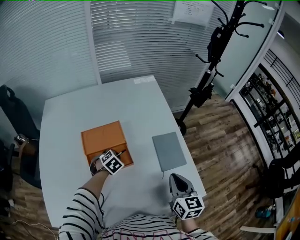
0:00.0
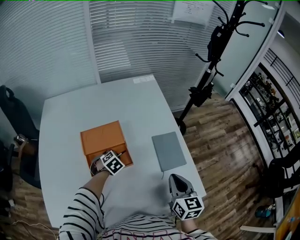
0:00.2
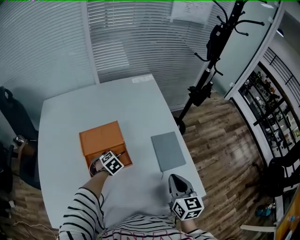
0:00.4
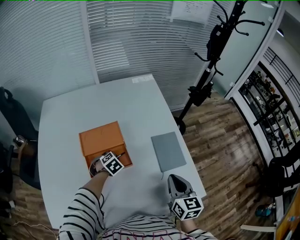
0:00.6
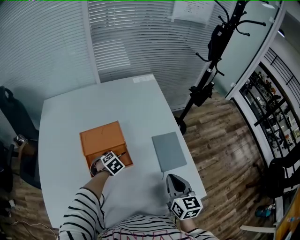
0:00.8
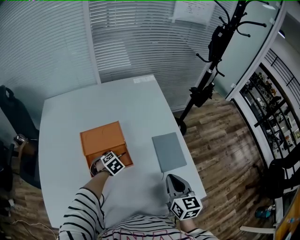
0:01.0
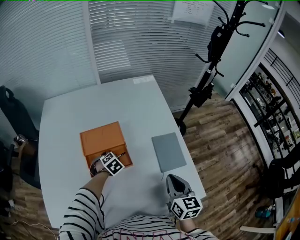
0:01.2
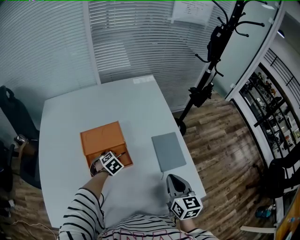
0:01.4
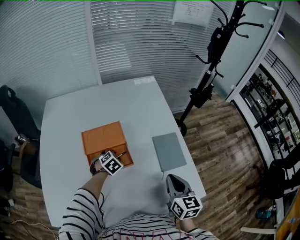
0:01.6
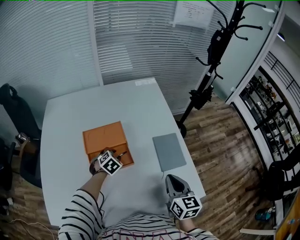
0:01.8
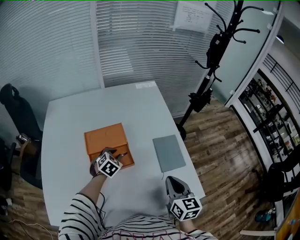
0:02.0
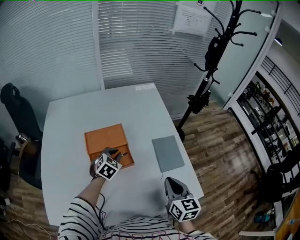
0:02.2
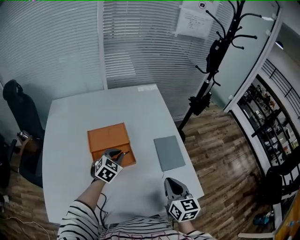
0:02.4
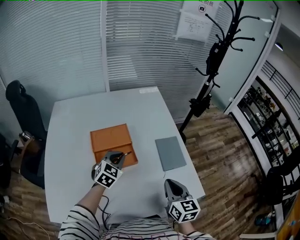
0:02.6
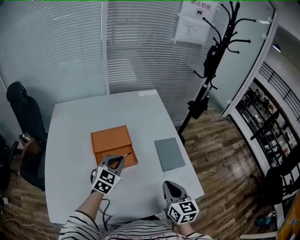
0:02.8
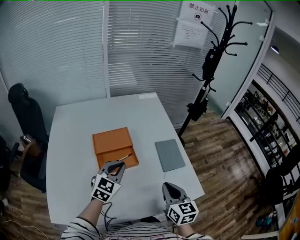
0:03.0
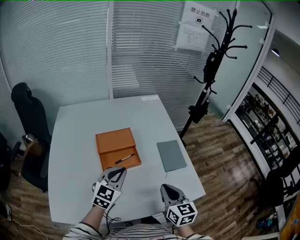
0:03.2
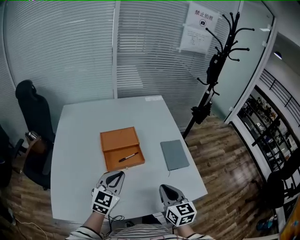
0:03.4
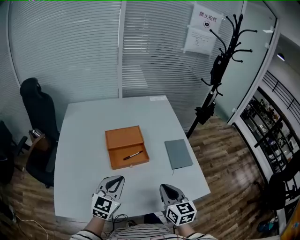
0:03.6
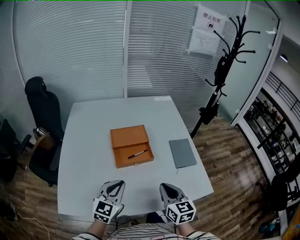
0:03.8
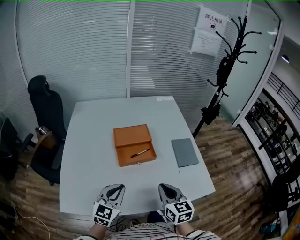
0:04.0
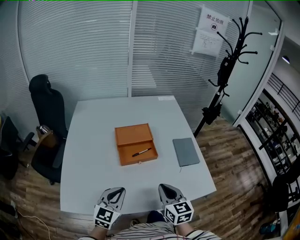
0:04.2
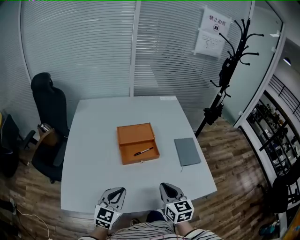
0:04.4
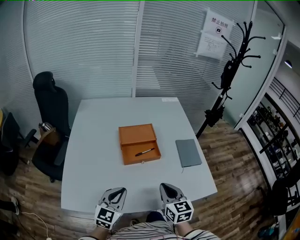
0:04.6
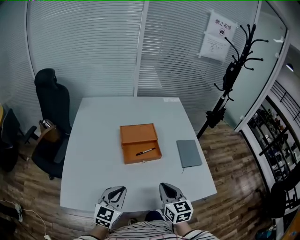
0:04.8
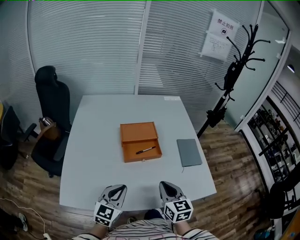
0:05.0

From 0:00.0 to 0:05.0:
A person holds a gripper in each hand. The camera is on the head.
From 0:00.0 to 0:01.6: There are only small adjustments of the grippers.
From 0:01.6 to 0:03.4: The right gripper shifts approximately 15 cm backward and to the left. Meanwhile the left gripper goes approximately 30 cm upward and backward, tilts its fingers approximately 50 degrees upward, and closes.
From 0:03.4 to 0:05.0: The left gripper is displaced backward and to the left by about 15 cm, while the right gripper shifts about 10 cm to the left.

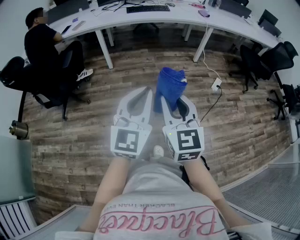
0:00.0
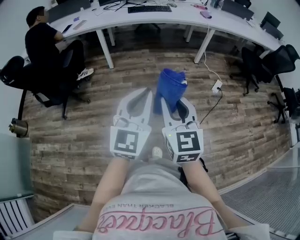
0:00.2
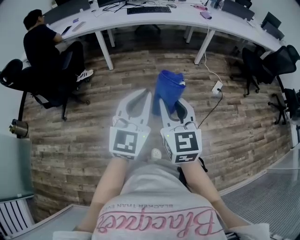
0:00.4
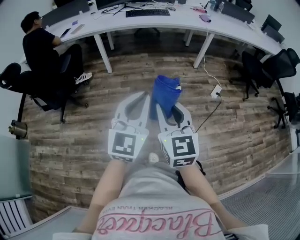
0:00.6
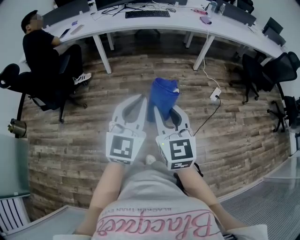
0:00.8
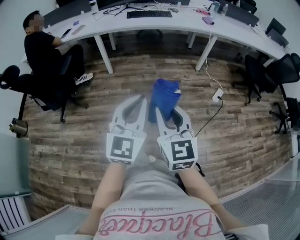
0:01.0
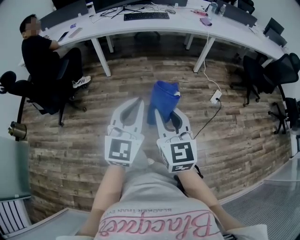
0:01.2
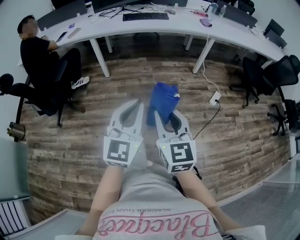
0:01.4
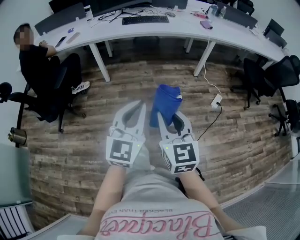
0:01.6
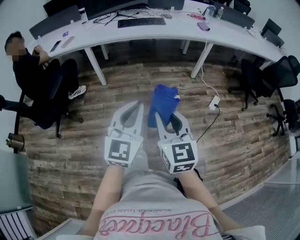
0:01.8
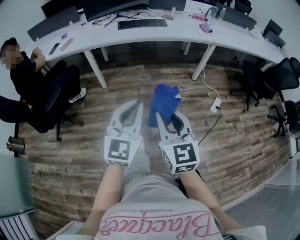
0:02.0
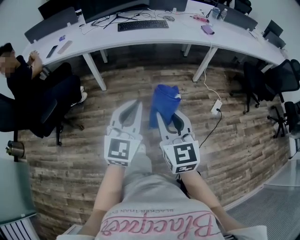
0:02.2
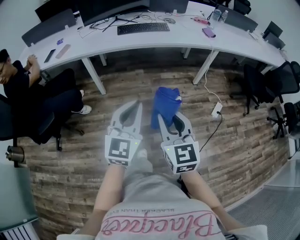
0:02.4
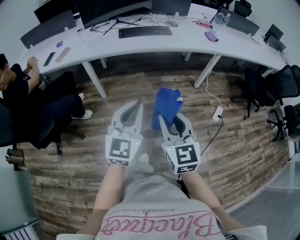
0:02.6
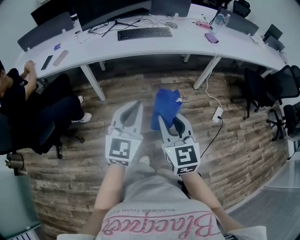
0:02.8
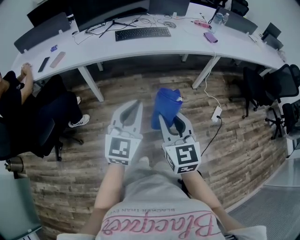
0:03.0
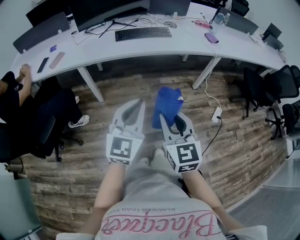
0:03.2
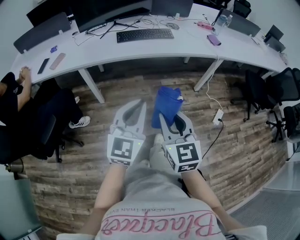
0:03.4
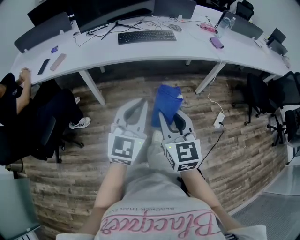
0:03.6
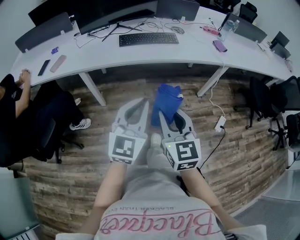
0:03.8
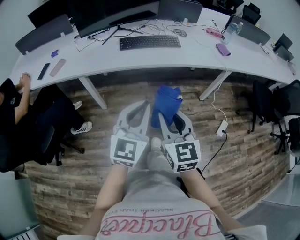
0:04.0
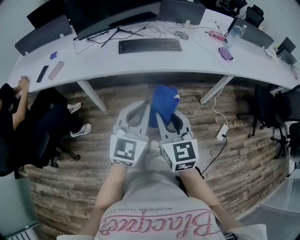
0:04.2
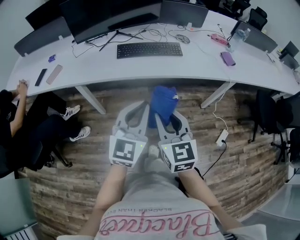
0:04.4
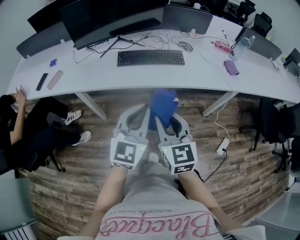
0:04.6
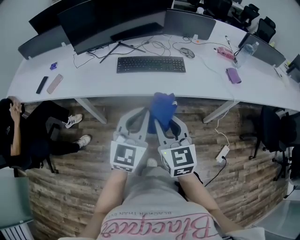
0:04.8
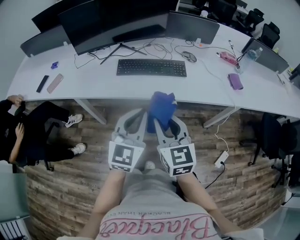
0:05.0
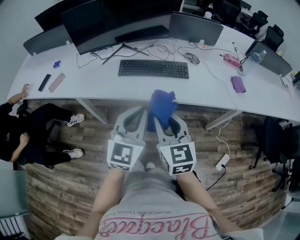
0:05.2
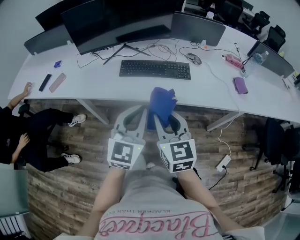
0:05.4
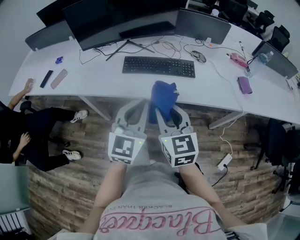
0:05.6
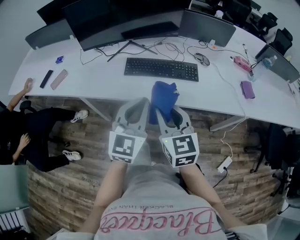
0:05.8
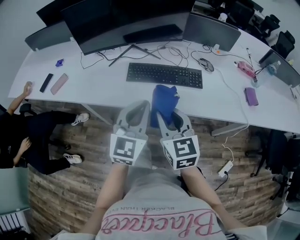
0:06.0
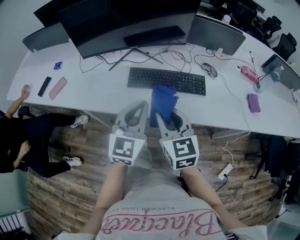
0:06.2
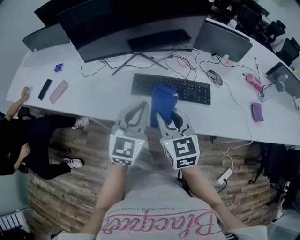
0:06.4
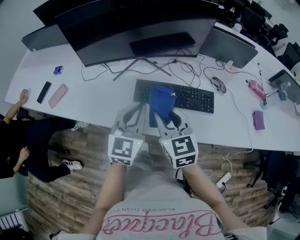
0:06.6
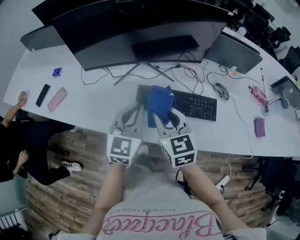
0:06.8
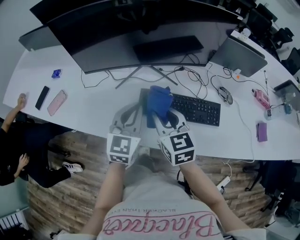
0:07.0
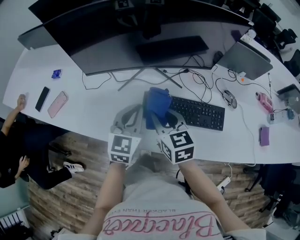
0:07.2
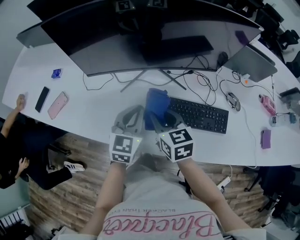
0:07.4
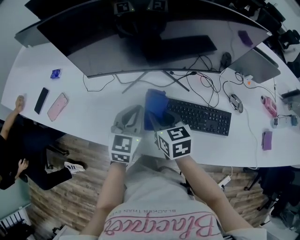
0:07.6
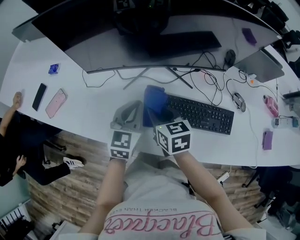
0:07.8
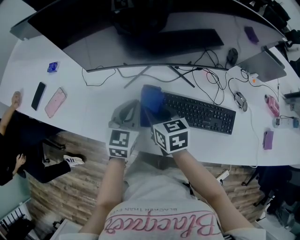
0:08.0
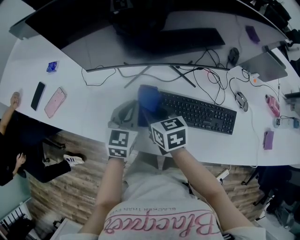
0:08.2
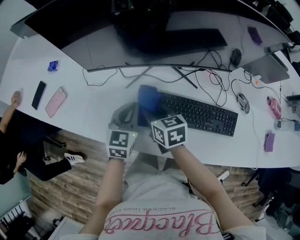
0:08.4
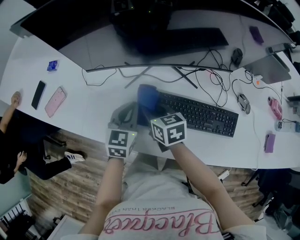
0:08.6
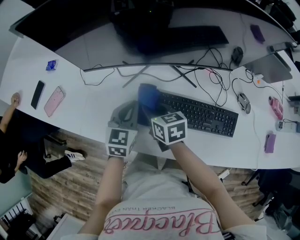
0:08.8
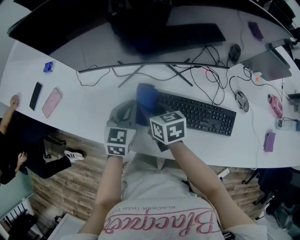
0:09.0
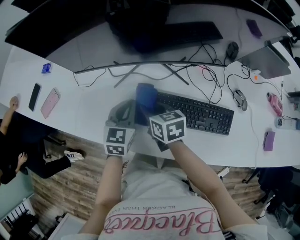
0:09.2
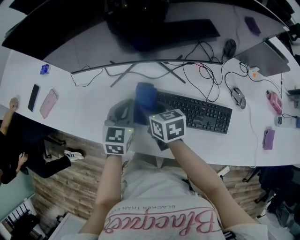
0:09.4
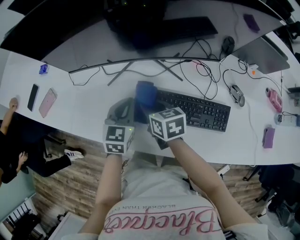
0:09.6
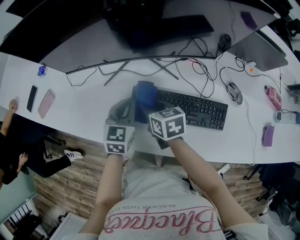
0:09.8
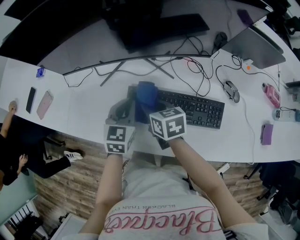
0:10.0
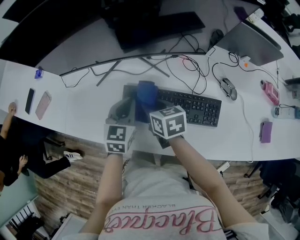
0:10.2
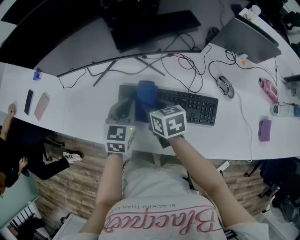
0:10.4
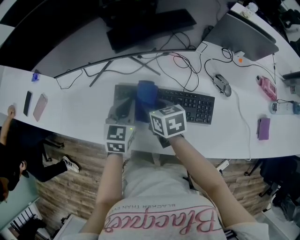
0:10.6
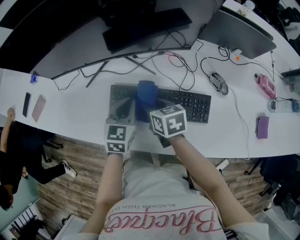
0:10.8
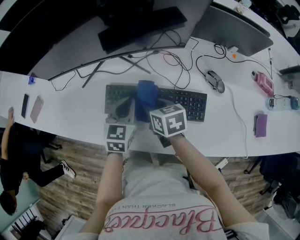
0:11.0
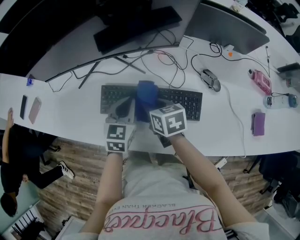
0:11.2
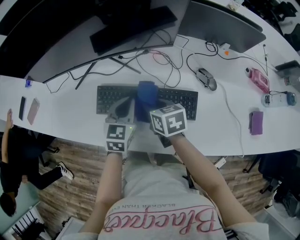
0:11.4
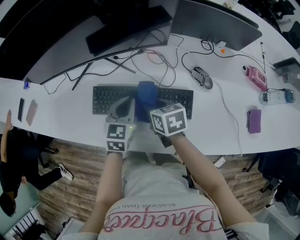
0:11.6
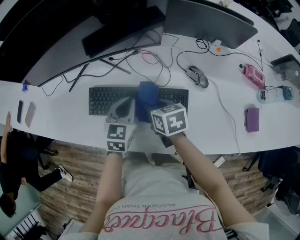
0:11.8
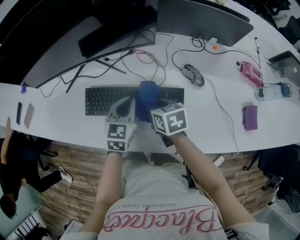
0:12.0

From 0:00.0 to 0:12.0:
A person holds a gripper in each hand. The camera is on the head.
From 0:00.0 to 0:01.6: The left gripper travels forward by about 15 cm. Meanwhile the right gripper is displaced forward and to the right by roughly 15 cm.
From 0:01.6 to 0:03.0: The grippers both shift forward by roughly 30 cm.
From 0:03.0 to 0:04.4: The two grippers go about 25 cm forward.
From 0:04.4 to 0:06.0: Both grippers travel together forward, roughly 25 cm.
From 0:06.0 to 0:07.6: Both grippers travel together forward and to the left, about 35 cm. The right gripper changes its angle by approximately 30 degrees.
From 0:07.6 to 0:09.0: The grippers both shift downward by about 5 cm.
From 0:09.0 to 0:10.4: The grippers both shift to the right by approximately 10 cm.
From 0:10.4 to 0:12.0: Both grippers travel together to the right, approximately 15 cm.

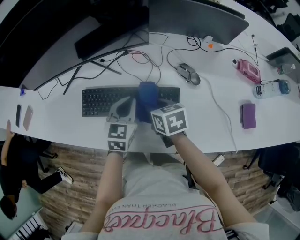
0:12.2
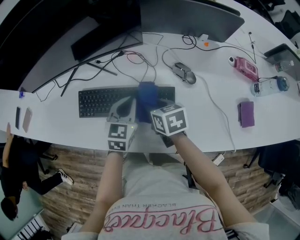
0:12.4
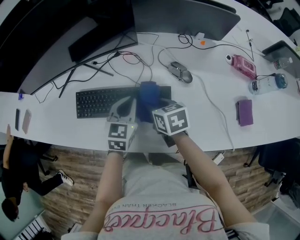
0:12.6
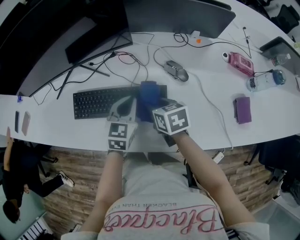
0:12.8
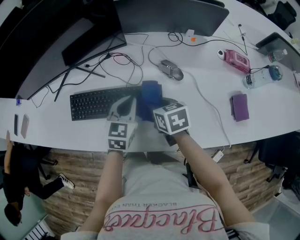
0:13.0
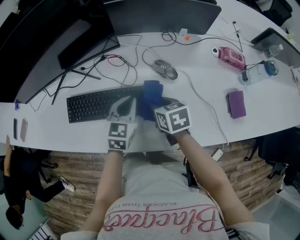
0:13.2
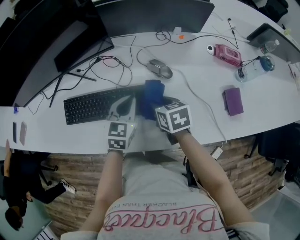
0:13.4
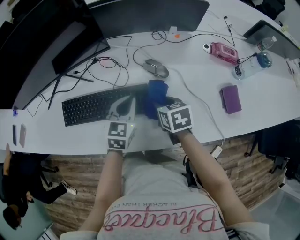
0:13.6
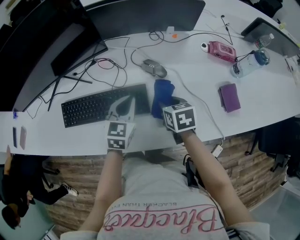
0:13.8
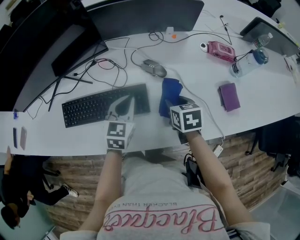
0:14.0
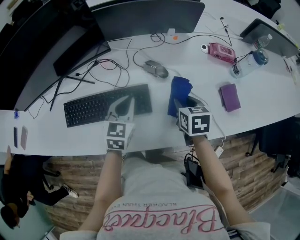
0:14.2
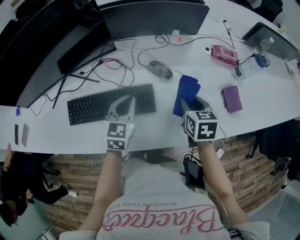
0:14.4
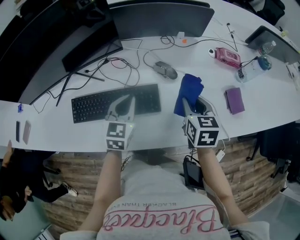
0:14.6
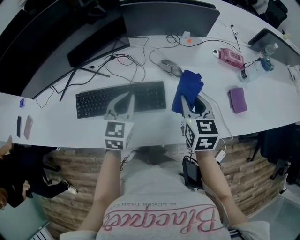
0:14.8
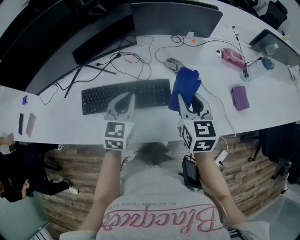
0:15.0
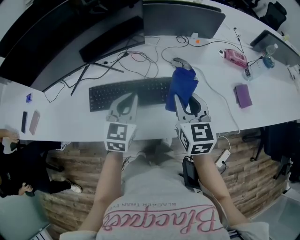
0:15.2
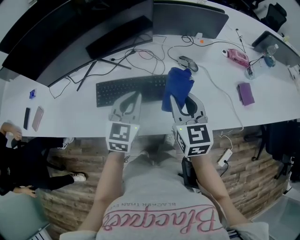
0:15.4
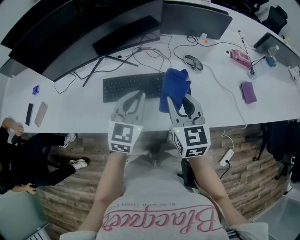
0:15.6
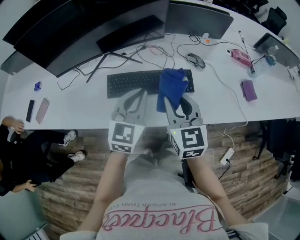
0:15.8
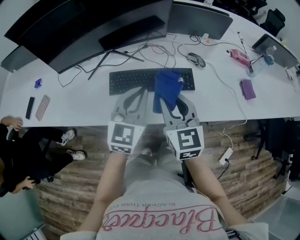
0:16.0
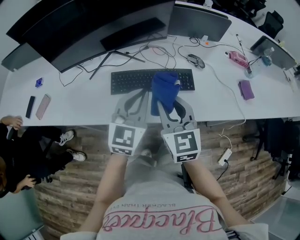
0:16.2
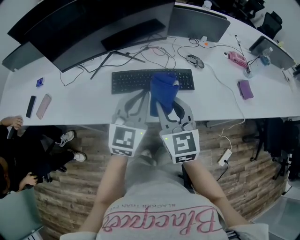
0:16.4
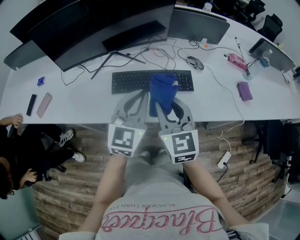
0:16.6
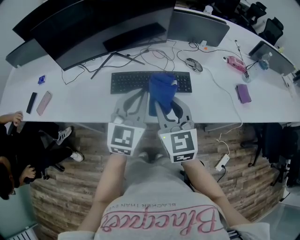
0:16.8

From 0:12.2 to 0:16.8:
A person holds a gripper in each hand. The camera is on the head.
From 0:12.2 to 0:13.8: Both grippers move to the right, approximately 15 cm.
From 0:13.8 to 0:15.2: The right gripper is displaced upward, to the left and backward by roughly 20 cm, and tips its fingers upward by about 30 degrees. Meanwhile the left gripper goes about 15 cm to the left, upward and backward.
From 0:15.2 to 0:16.8: The left gripper moves backward, upward and to the left, some 20 cm. Meanwhile the right gripper moves to the left and backward, roughly 25 cm.

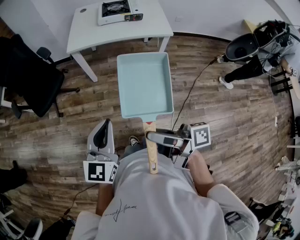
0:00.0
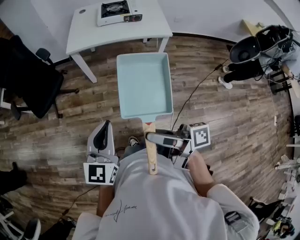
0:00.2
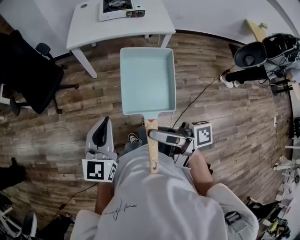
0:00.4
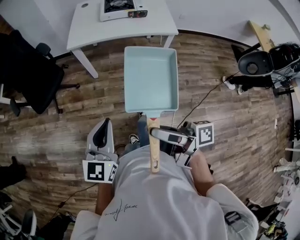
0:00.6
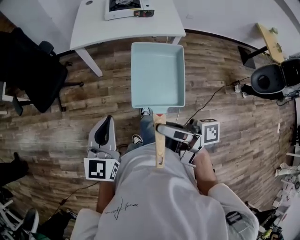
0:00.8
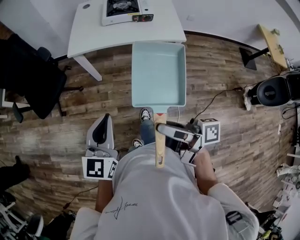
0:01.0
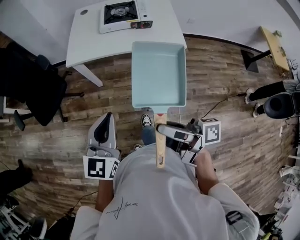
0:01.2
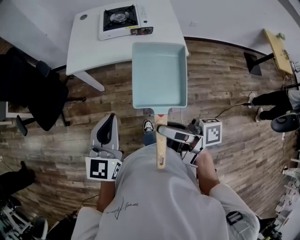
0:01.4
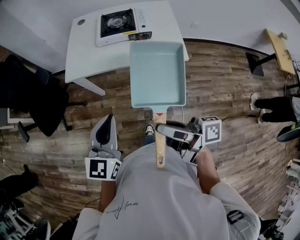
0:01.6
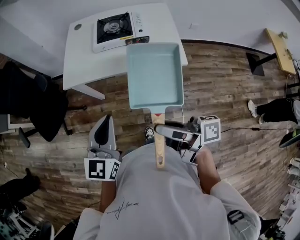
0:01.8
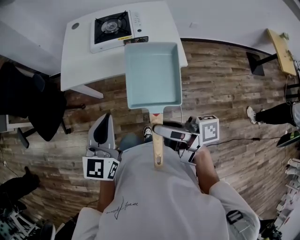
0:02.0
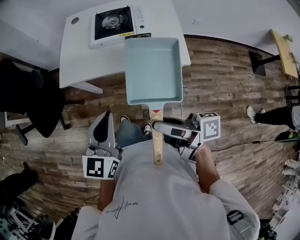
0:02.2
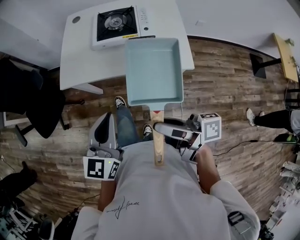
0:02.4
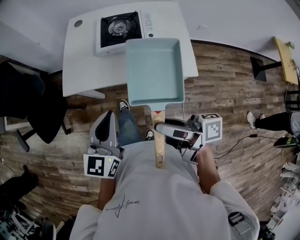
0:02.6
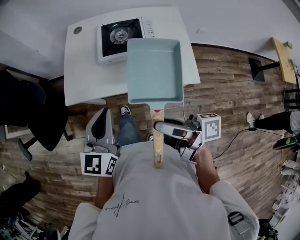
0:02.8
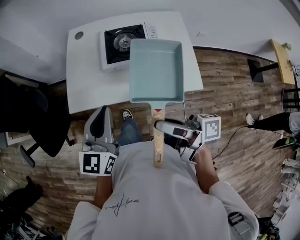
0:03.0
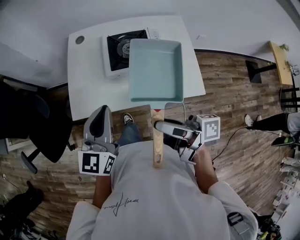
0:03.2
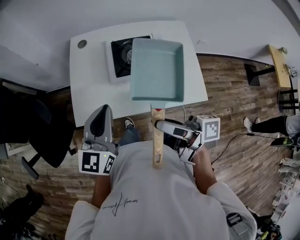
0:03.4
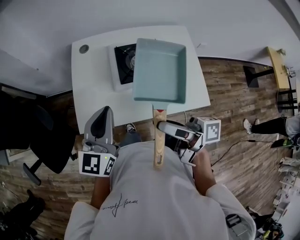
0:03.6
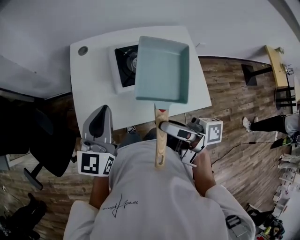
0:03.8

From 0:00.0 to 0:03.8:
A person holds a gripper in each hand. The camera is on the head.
From 0:00.0 to 0:01.2: Both grippers travel together forward and to the right, about 20 cm.
From 0:01.2 to 0:02.6: Both grippers travel together forward and to the right, roughly 25 cm.
From 0:02.6 to 0:03.8: Both grippers travel together forward, some 25 cm.
